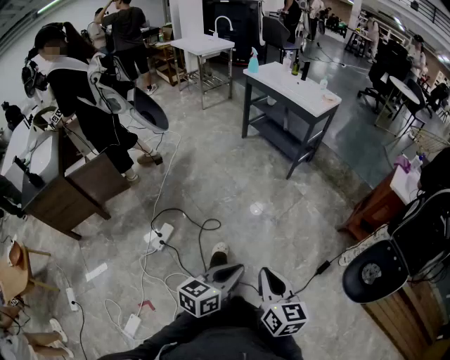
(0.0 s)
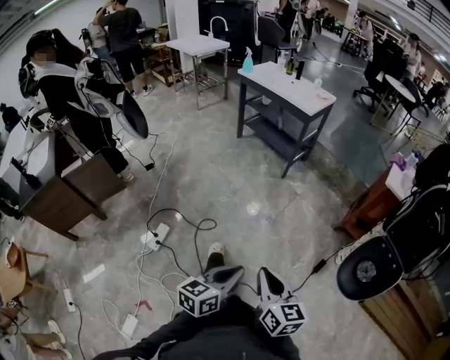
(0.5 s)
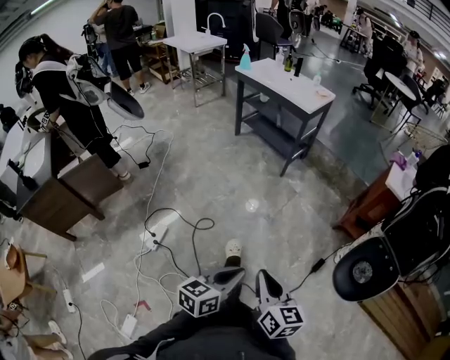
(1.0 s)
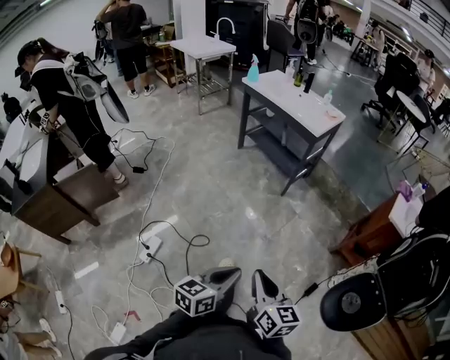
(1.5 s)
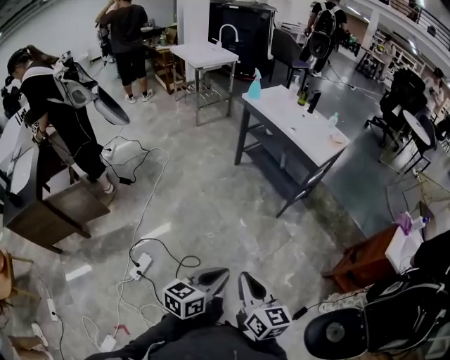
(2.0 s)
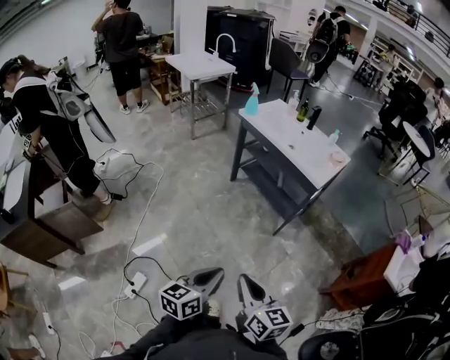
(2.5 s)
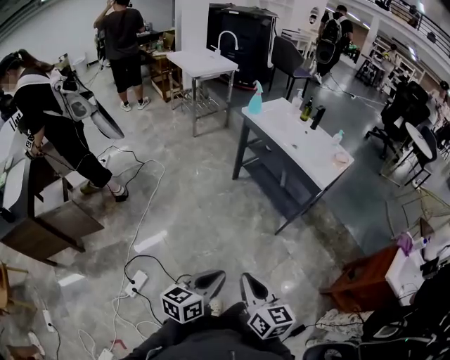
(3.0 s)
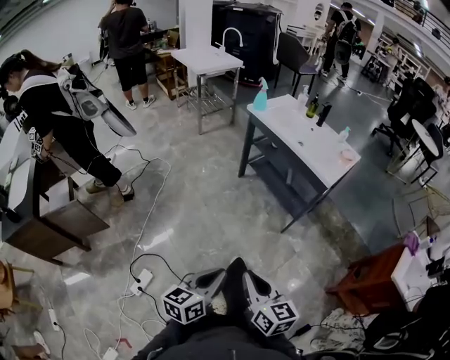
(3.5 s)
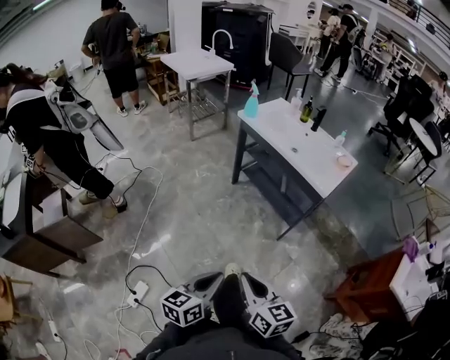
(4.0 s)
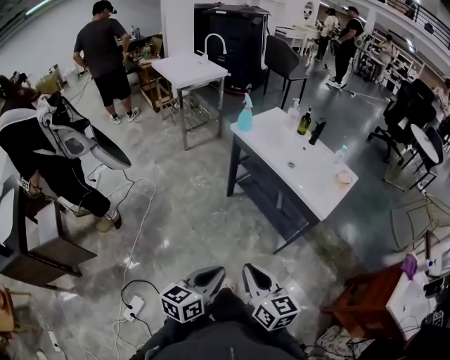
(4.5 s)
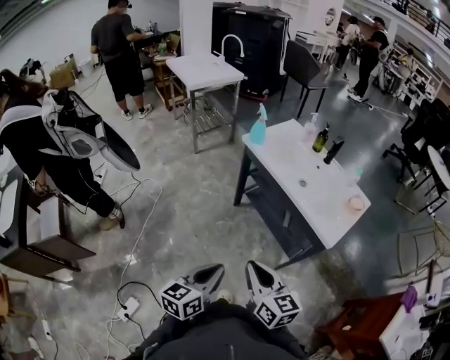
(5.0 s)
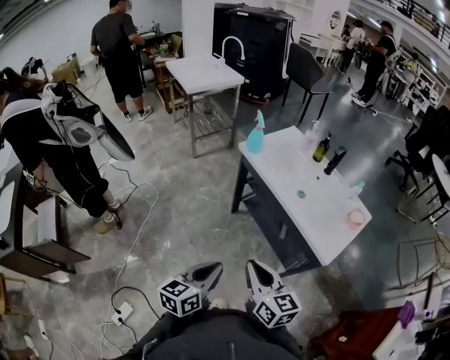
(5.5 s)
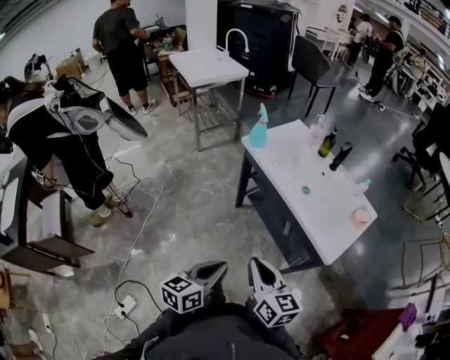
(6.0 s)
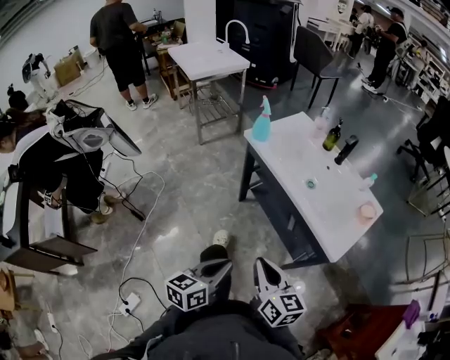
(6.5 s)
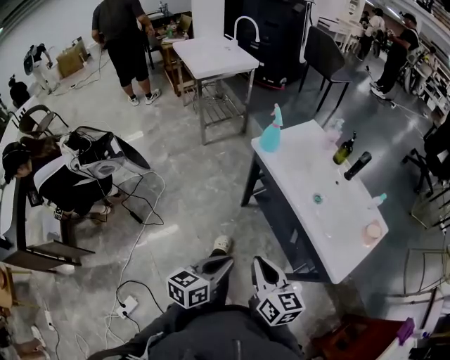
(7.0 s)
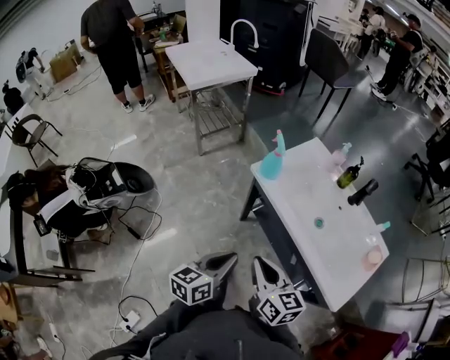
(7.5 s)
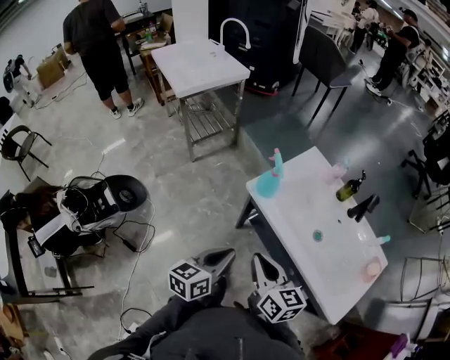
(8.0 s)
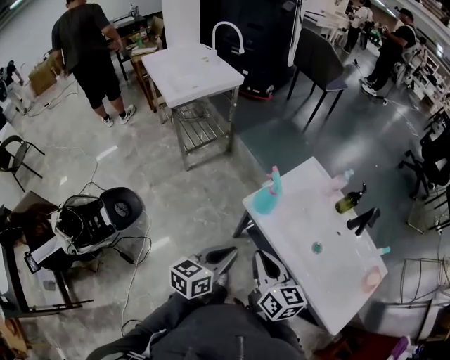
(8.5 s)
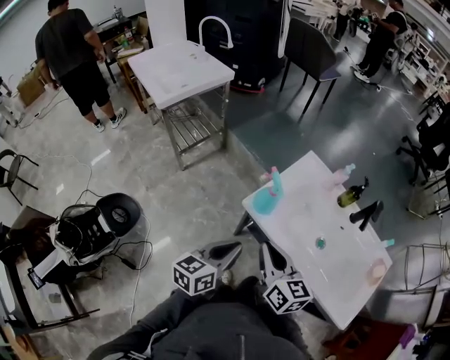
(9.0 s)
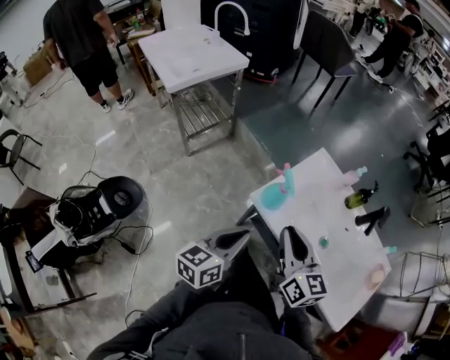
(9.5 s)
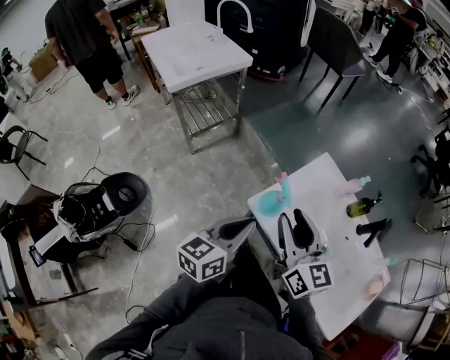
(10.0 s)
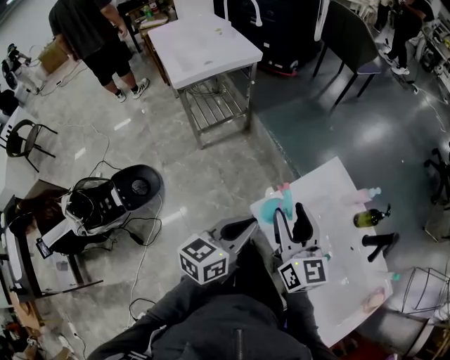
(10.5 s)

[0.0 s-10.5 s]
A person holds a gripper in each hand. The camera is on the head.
0.0 to 2.0 s: The two grippers go about 30 cm forward.
2.0 to 4.0 s: Both grippers move forward, about 20 cm.
4.0 to 6.5 s: The two grippers go about 35 cm forward.
6.5 to 8.5 s: Both grippers move forward, about 35 cm.
8.5 to 10.5 s: Both grippers travel together forward, some 15 cm. The right gripper opens.

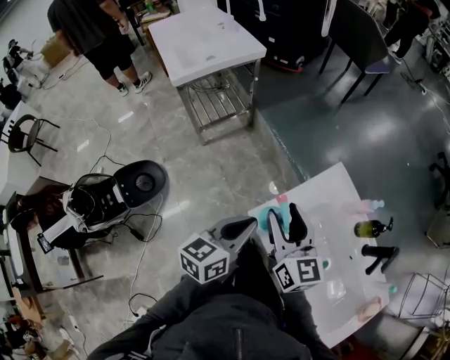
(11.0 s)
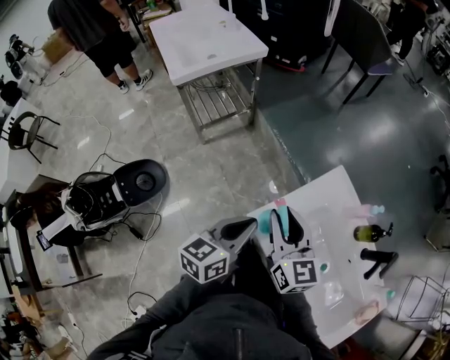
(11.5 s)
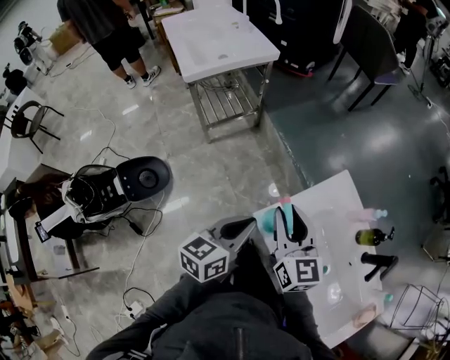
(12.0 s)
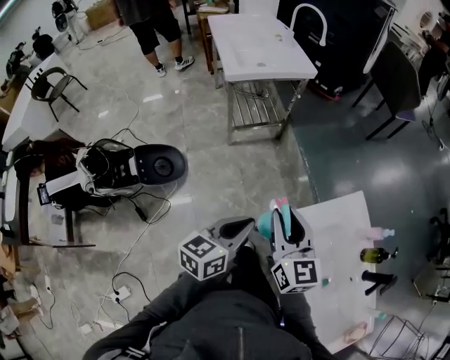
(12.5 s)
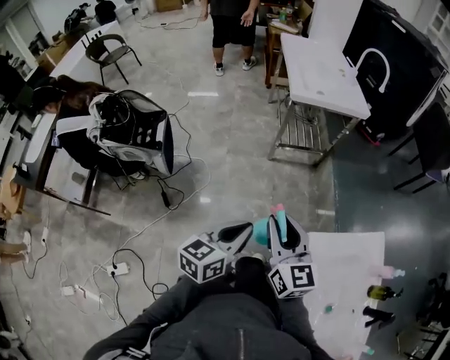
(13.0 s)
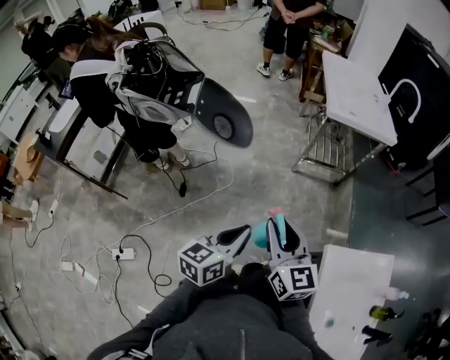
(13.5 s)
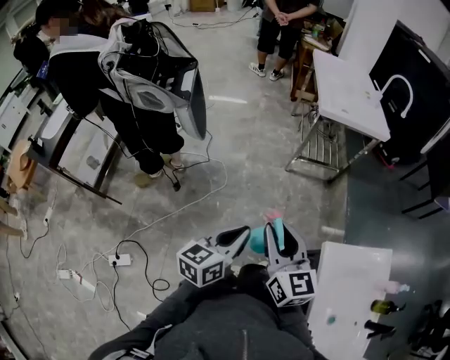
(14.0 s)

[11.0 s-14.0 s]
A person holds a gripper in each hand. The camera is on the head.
11.0 to 12.5 s: The two grippers go about 10 cm to the left. The right gripper closes.
12.5 to 14.0 s: The right gripper ends up roughly 25 cm from where it was, and turns by some 30 degrees; the left gripper shifts by some 20 cm, and changes its angle by some 30 degrees.

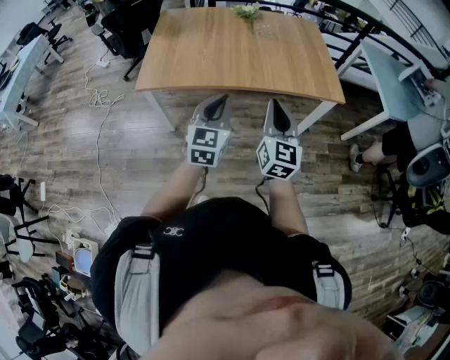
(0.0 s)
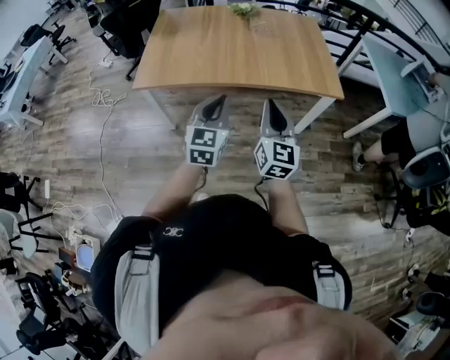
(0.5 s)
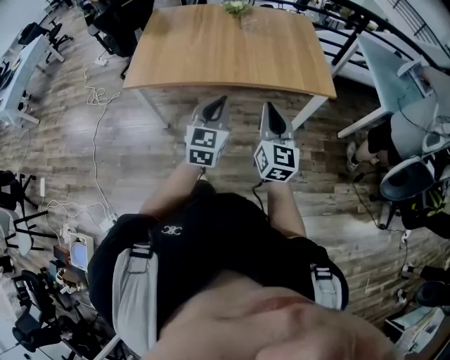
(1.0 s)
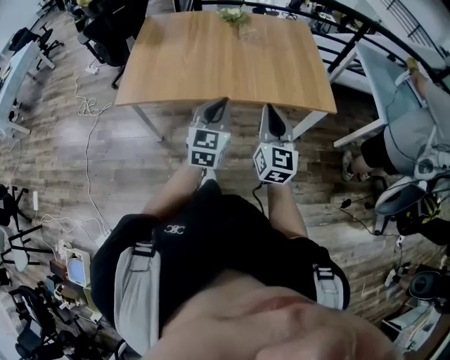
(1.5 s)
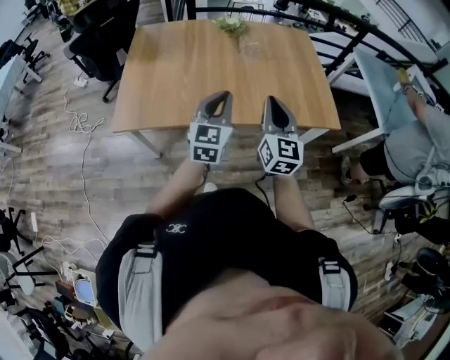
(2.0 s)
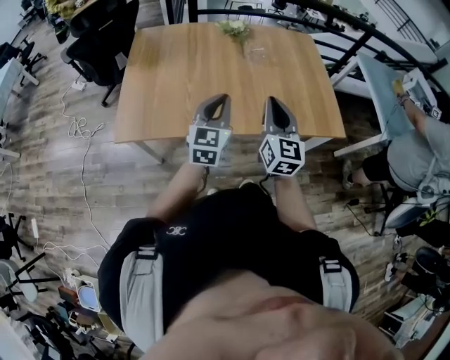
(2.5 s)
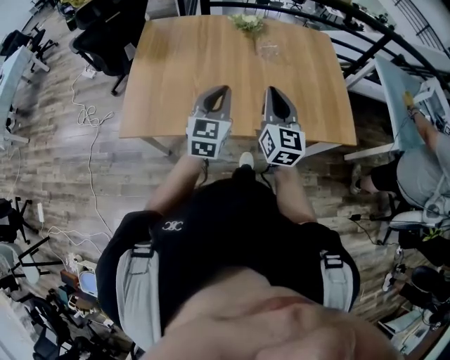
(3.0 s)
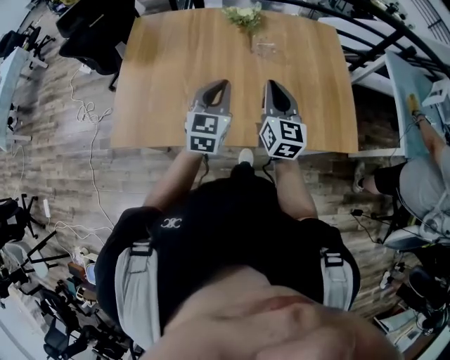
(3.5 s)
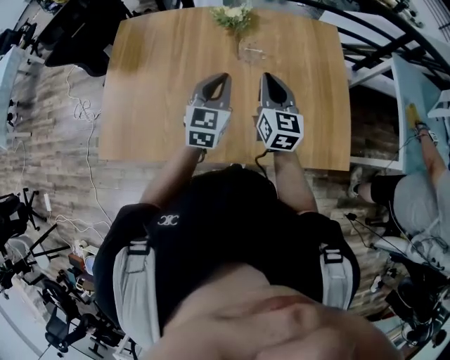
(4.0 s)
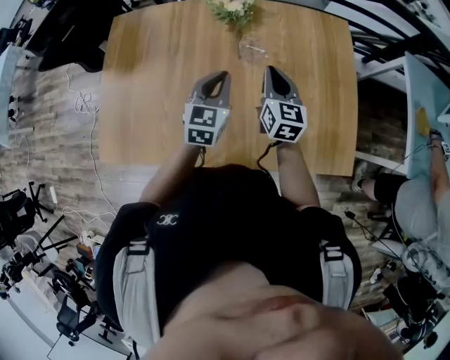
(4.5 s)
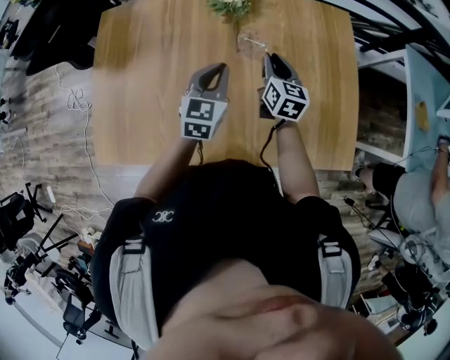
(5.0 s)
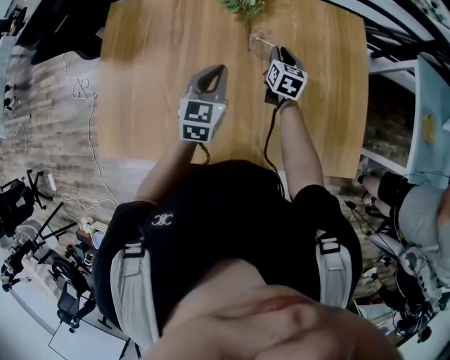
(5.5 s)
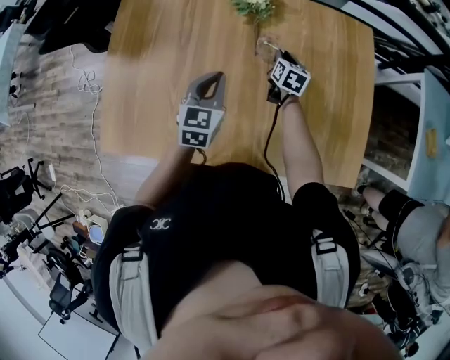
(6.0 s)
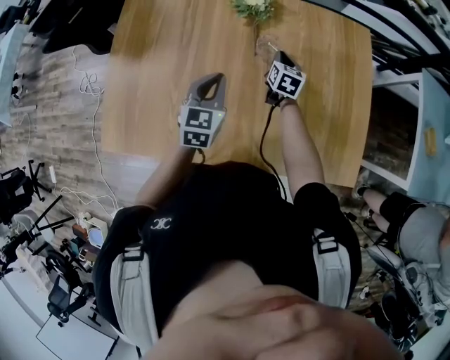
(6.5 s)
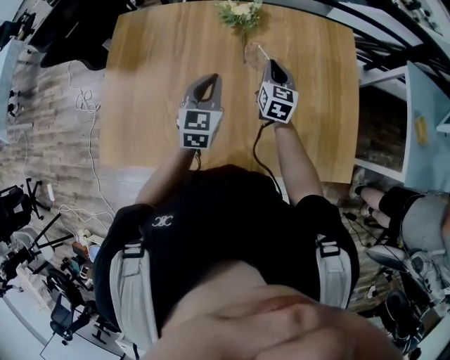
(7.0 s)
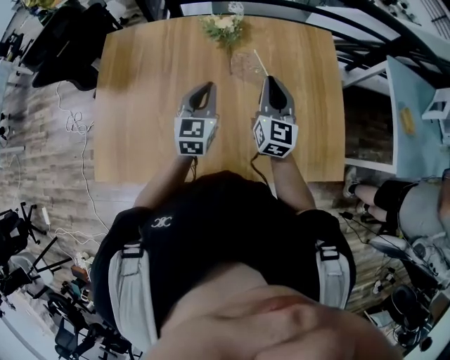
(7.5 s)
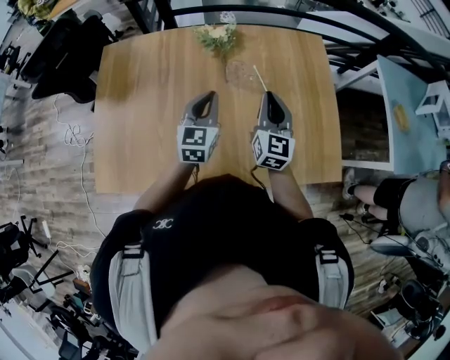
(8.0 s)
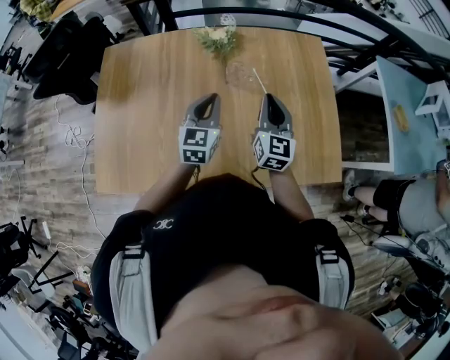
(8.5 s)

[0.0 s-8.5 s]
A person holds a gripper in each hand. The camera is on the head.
0.0 to 2.0 s: The two grippers go roughly 25 cm forward.
2.0 to 4.0 s: Both grippers travel together forward, some 35 cm.
4.0 to 6.5 s: The left gripper heads downward, forward and to the left, covering some 10 cm; the right gripper moves downward and forward, roughly 30 cm, and rotates roughly 30 degrees.
6.5 to 8.5 s: The left gripper moves upward, about 5 cm; the right gripper travels upward and backward by some 25 cm, and rotates approximately 30 degrees.

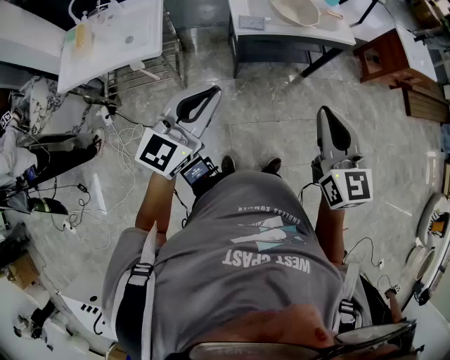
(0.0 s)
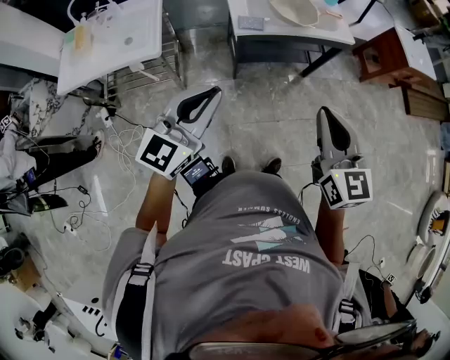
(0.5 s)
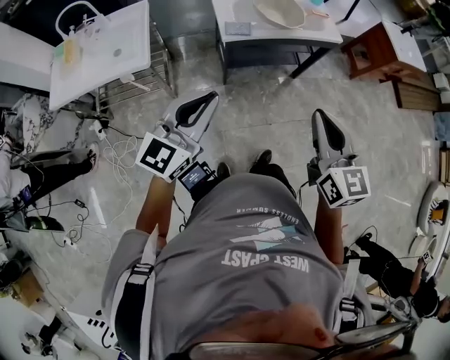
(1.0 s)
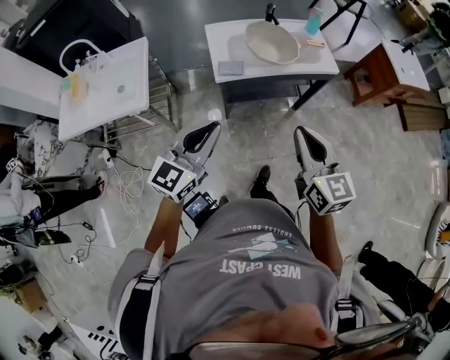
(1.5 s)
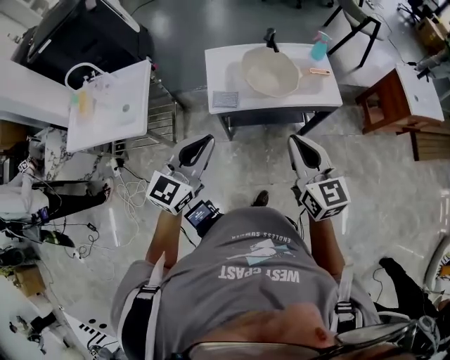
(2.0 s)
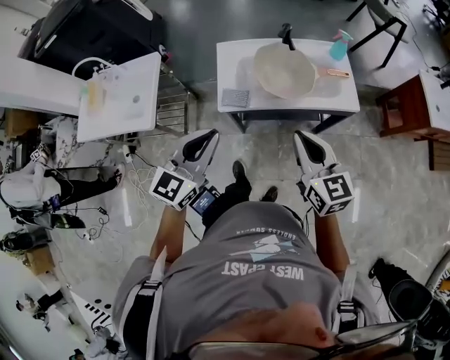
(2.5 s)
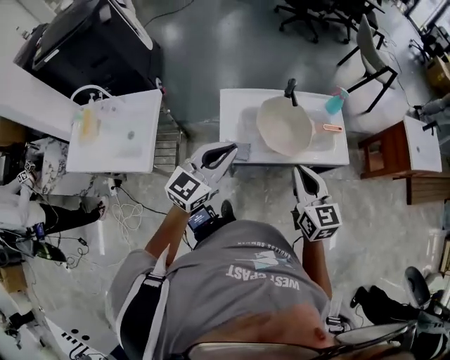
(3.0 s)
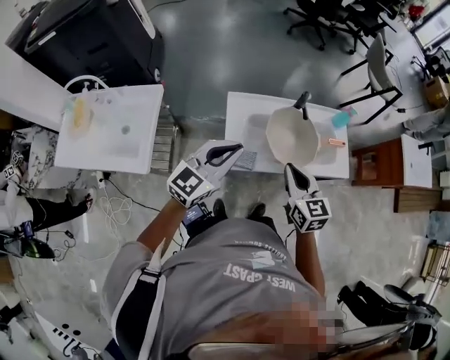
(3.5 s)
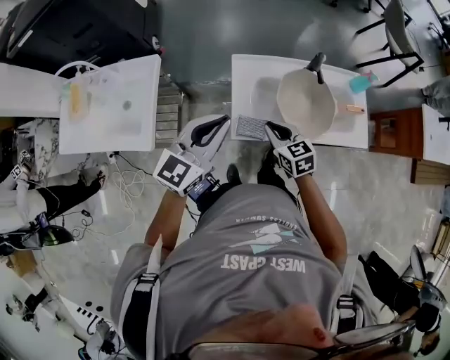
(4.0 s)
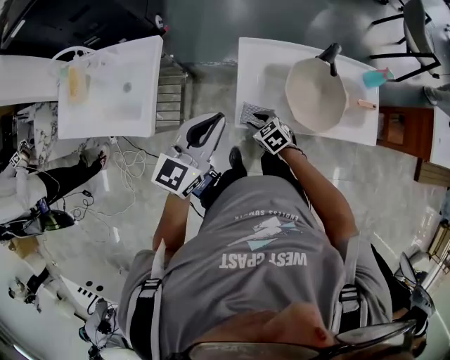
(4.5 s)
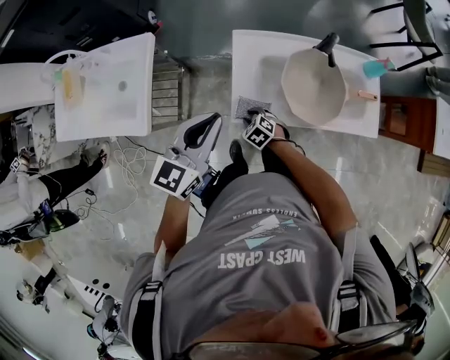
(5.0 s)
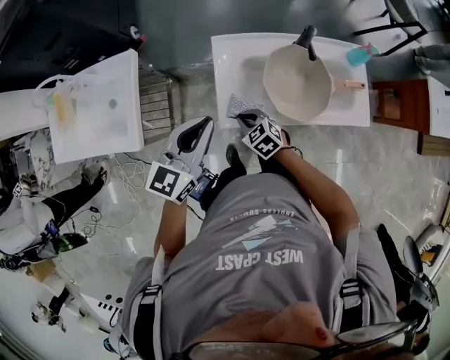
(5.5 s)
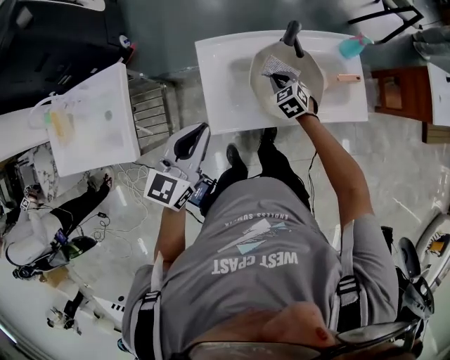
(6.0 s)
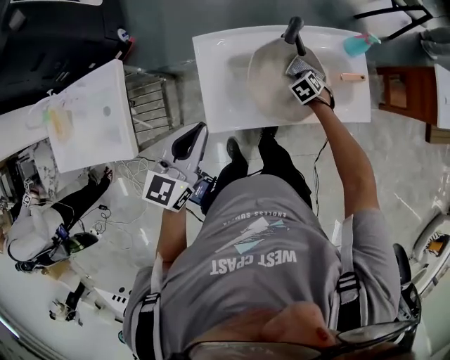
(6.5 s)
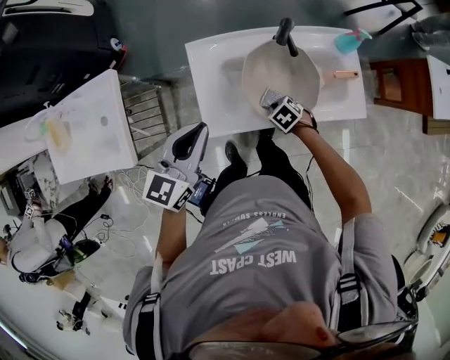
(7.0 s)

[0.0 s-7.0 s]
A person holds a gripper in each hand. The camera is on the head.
0.0 to 2.0 s: The right gripper heads forward, covering roughly 25 cm, while the left gripper heads forward and to the right, covering some 30 cm.
2.0 to 3.5 s: The grippers both shift forward and to the left by about 25 cm.
3.5 to 5.0 s: The right gripper is displaced downward by approximately 35 cm, tips its fingers downward by approximately 40 degrees, and opens, while the left gripper heads downward, covering about 5 cm.
5.0 to 7.0 s: The right gripper reaches roughly 10 cm upward, then returns, rotates approximately 20 degrees, and closes; the left gripper changes place by roughly 10 cm.
